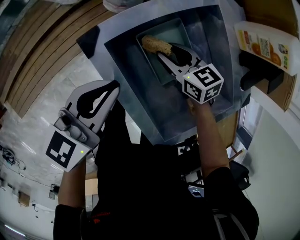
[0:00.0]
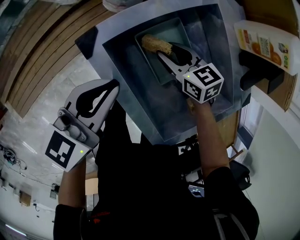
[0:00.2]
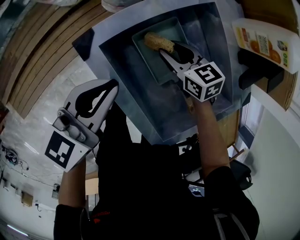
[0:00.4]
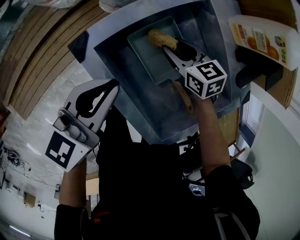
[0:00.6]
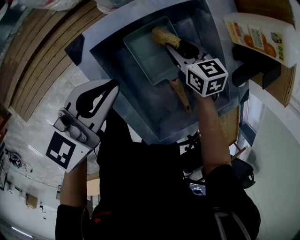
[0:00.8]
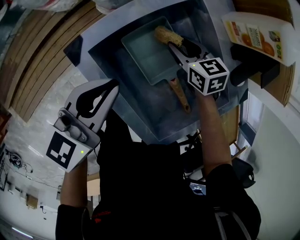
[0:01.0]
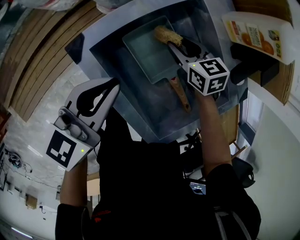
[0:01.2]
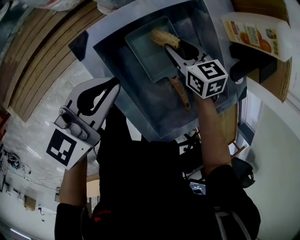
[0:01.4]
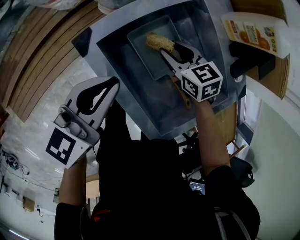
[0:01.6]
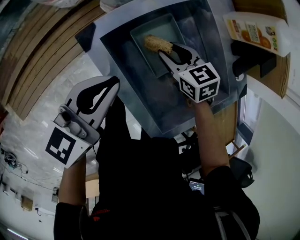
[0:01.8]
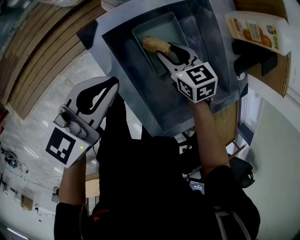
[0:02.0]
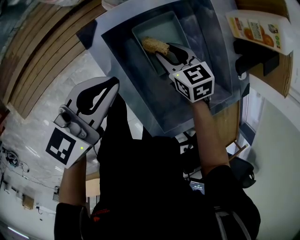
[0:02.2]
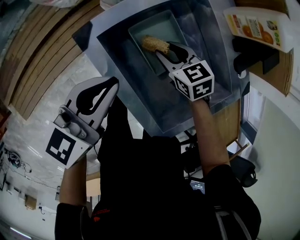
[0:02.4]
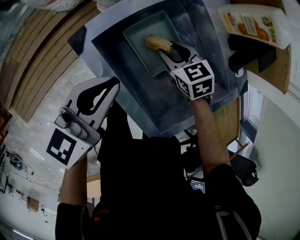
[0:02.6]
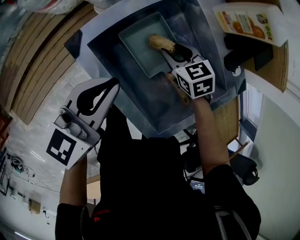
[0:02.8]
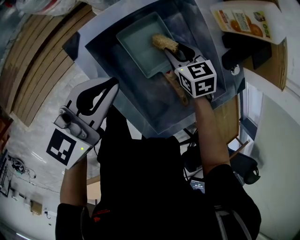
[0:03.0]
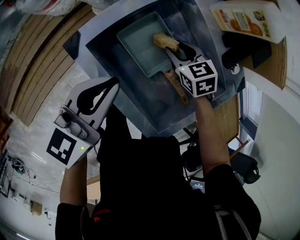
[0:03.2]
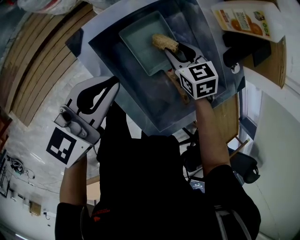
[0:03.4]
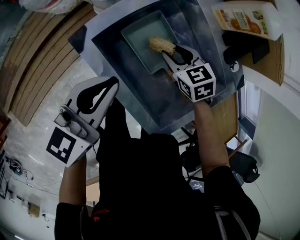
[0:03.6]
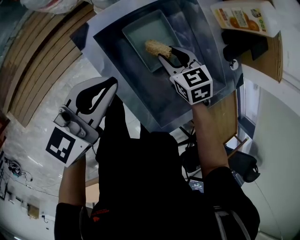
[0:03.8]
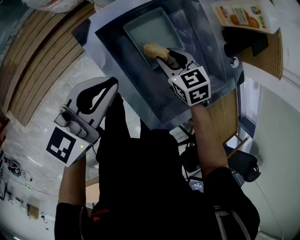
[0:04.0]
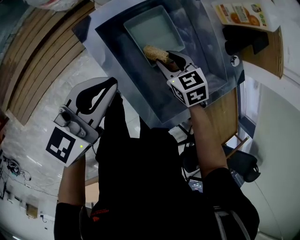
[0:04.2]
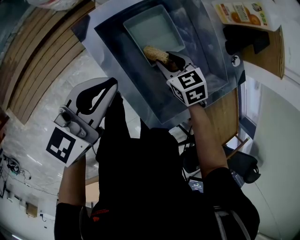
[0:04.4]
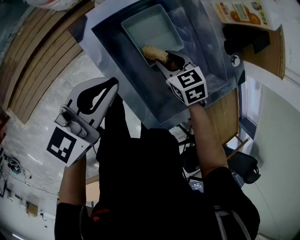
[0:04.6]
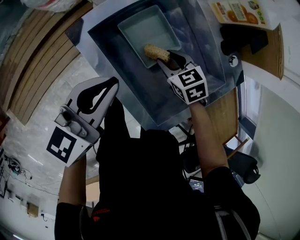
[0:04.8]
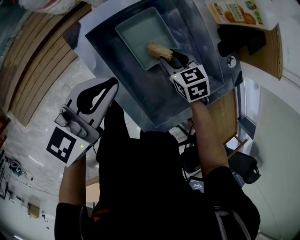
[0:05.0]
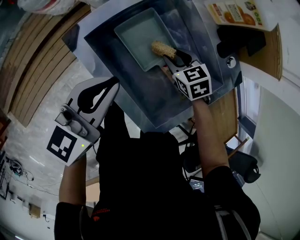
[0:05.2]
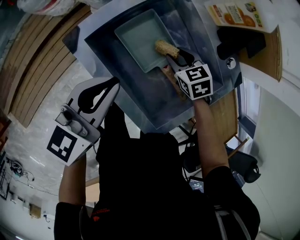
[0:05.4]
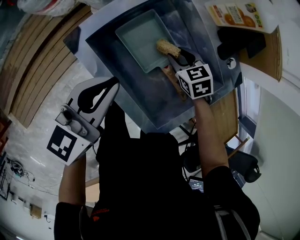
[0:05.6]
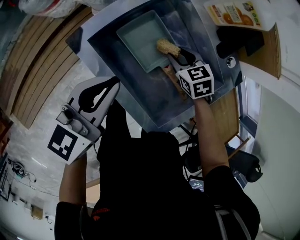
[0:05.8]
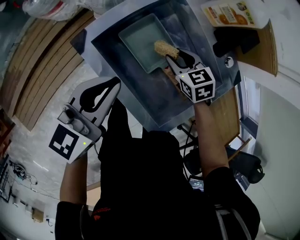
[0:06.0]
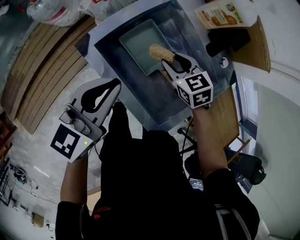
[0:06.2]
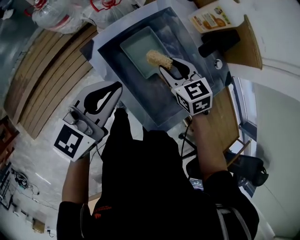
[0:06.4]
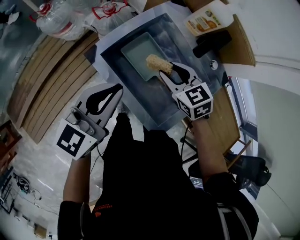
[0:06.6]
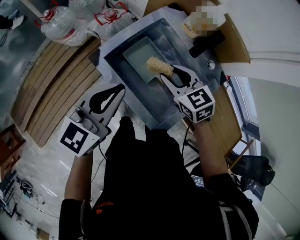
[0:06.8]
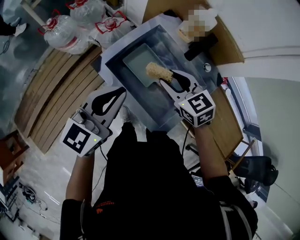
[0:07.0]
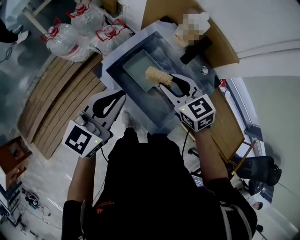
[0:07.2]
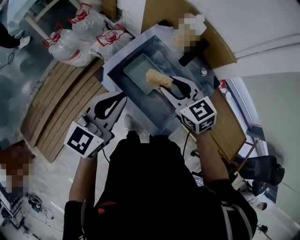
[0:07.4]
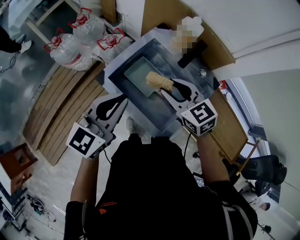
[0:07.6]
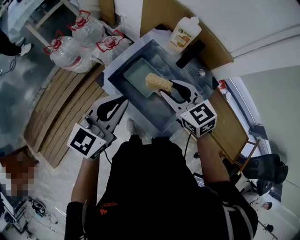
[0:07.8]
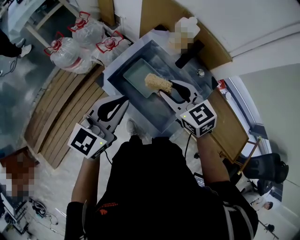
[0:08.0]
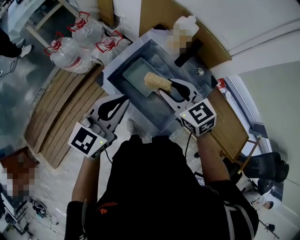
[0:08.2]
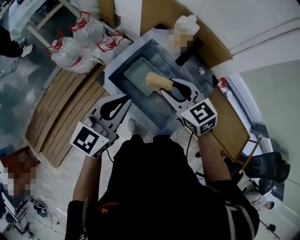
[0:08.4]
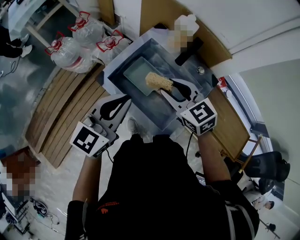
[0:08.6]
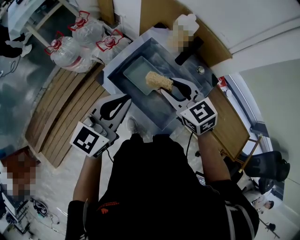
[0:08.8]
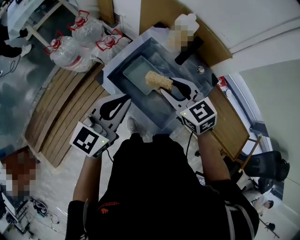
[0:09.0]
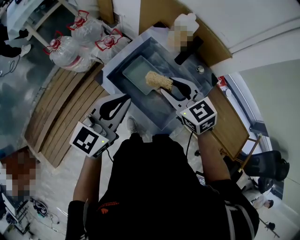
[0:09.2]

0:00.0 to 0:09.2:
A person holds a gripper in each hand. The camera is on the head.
0:01.6 to 0:03.0: The right gripper heads to the right, covering about 5 cm.
0:03.0 to 0:04.6: The left gripper moves backward, about 5 cm. The right gripper travels backward by about 10 cm.
0:04.6 to 0:06.2: The right gripper goes some 5 cm upward, while the left gripper changes place by some 5 cm.
0:06.2 to 0:07.6: The right gripper moves upward, approximately 20 cm. The left gripper is displaced upward by some 15 cm.
0:07.6 to 0:09.2: The grippers stay close to where they were, moving slightly.

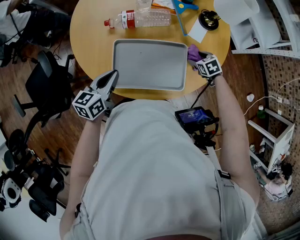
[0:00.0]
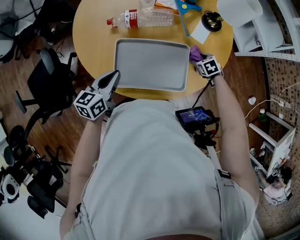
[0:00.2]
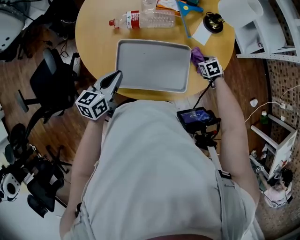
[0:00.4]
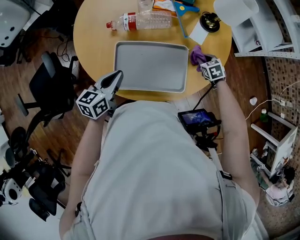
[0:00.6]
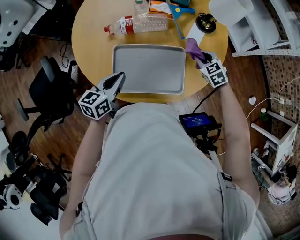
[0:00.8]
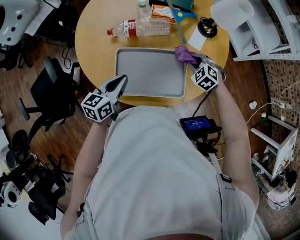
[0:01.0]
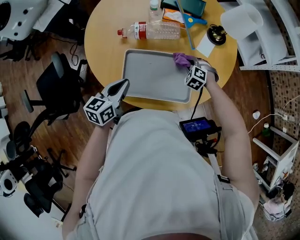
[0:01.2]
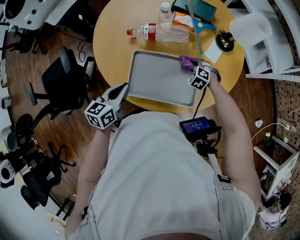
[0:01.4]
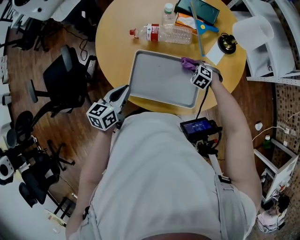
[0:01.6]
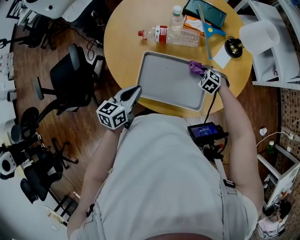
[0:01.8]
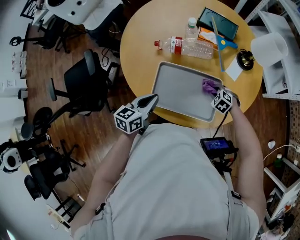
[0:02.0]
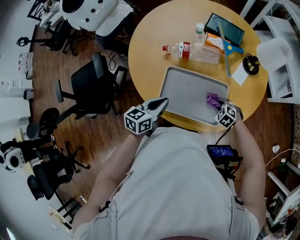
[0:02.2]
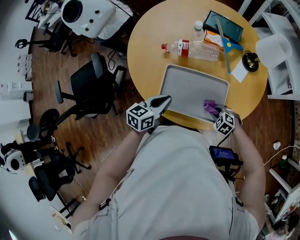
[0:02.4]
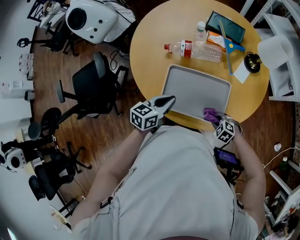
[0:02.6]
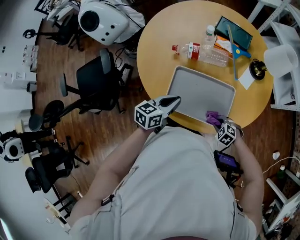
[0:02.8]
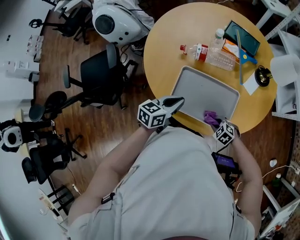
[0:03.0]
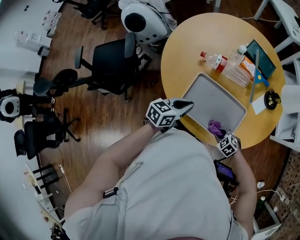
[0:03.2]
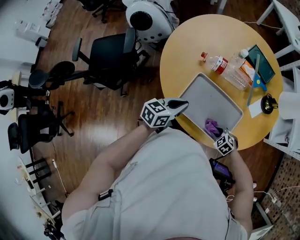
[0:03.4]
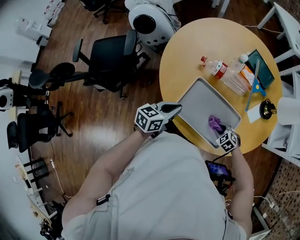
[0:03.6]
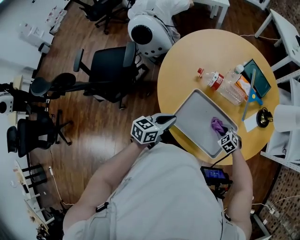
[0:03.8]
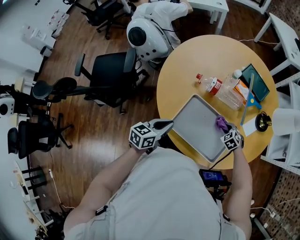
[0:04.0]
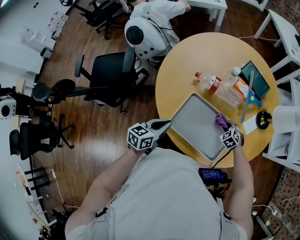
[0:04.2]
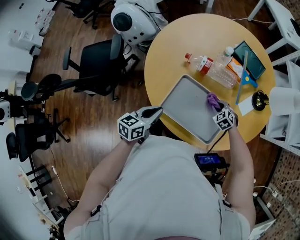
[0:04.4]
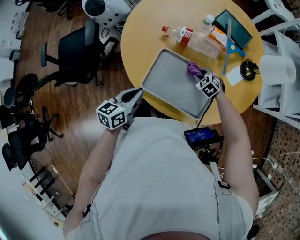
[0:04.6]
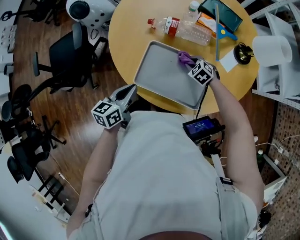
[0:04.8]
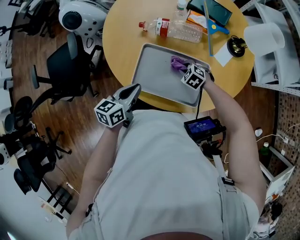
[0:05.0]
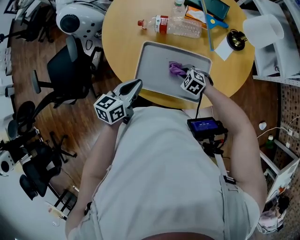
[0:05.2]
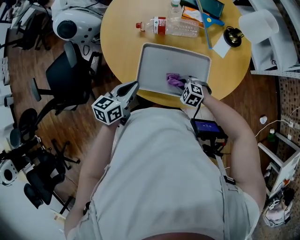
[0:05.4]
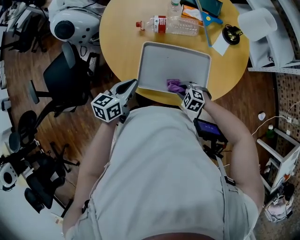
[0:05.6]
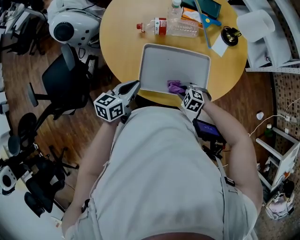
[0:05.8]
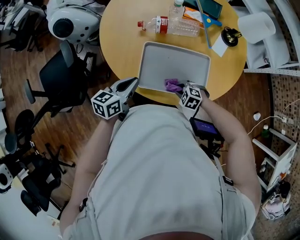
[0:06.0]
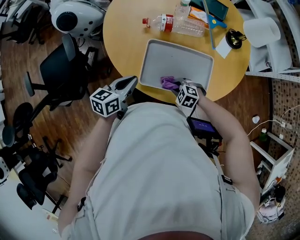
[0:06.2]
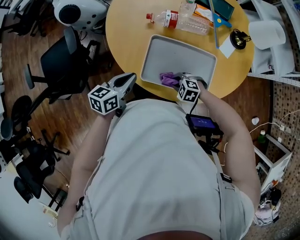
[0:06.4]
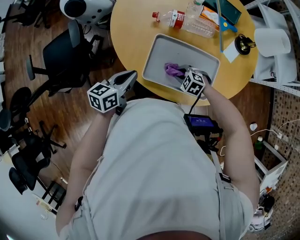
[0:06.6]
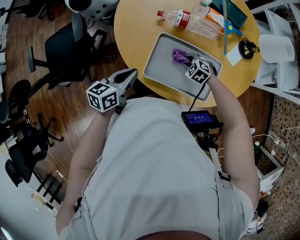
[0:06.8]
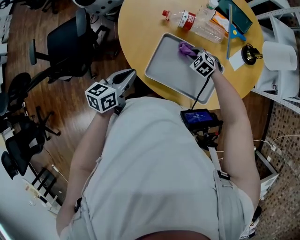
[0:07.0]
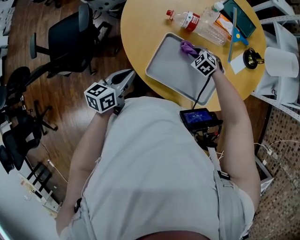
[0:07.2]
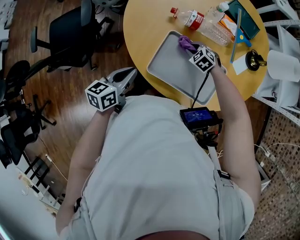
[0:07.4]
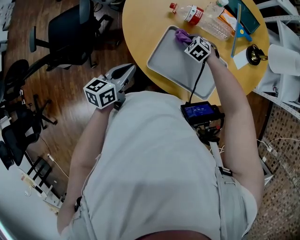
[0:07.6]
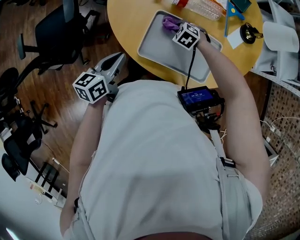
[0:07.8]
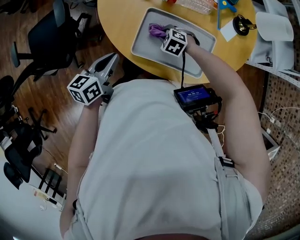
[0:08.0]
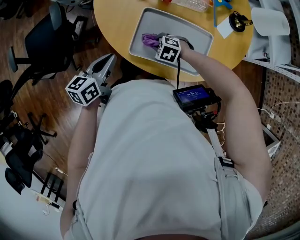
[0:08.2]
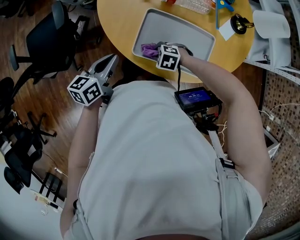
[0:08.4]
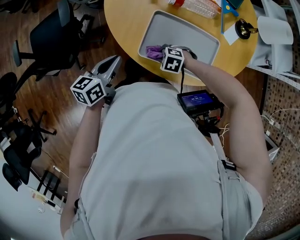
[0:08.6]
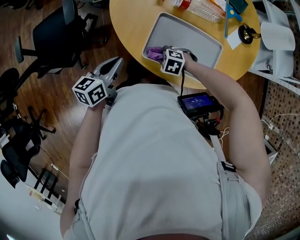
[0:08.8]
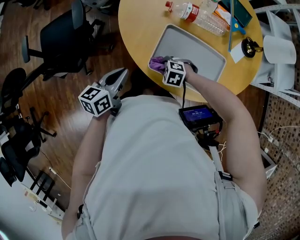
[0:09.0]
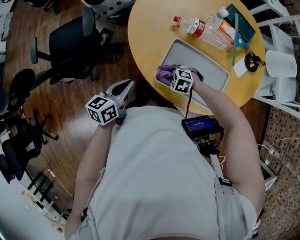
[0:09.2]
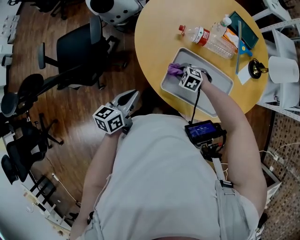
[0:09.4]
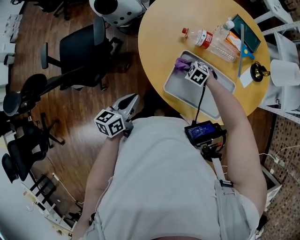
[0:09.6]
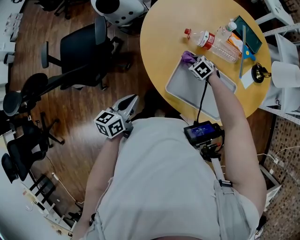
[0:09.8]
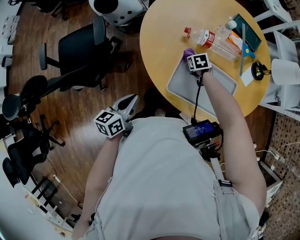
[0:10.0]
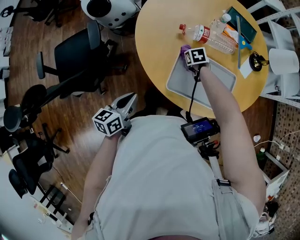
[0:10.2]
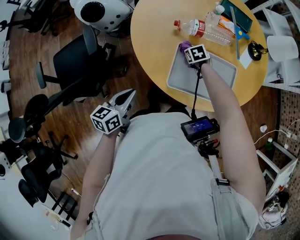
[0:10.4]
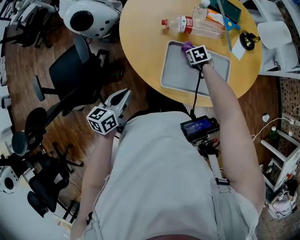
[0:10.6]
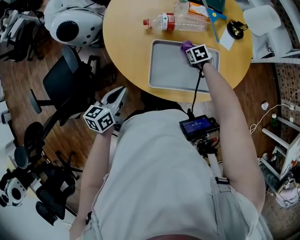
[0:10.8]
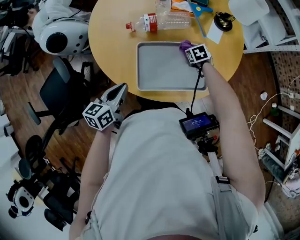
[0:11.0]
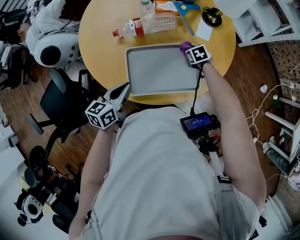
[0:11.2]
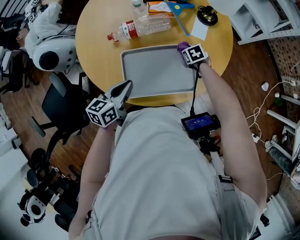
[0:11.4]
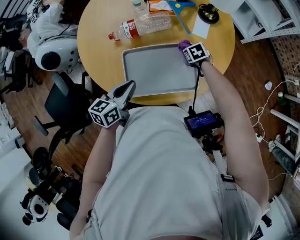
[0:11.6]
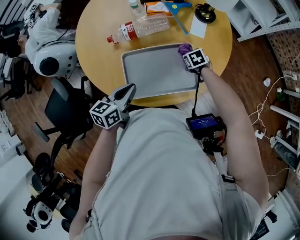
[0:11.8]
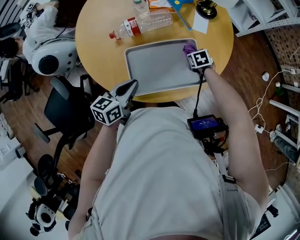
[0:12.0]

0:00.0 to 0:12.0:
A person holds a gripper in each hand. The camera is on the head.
0:00.0 to 0:01.6: The right gripper travels to the left by approximately 10 cm, rotates around the line of its fingers by approximately 40 degrees, counterclockwise from behind, and closes up.
0:01.6 to 0:03.0: The right gripper is displaced backward and to the left by some 20 cm.
0:03.0 to 0:04.4: The left gripper goes approximately 5 cm to the left. The right gripper heads forward, covering some 20 cm.
0:04.4 to 0:06.0: The right gripper goes some 20 cm backward and to the left.
0:06.0 to 0:07.6: The right gripper changes place by some 20 cm, while the left gripper shifts by approximately 10 cm.
0:07.6 to 0:09.0: The right gripper changes place by some 15 cm, and changes its angle by some 20 degrees.
0:09.0 to 0:10.4: The right gripper moves approximately 20 cm, and twists about 60 degrees clockwise, seen from behind. Meanwhile the left gripper moves some 10 cm.
0:10.4 to 0:12.0: The left gripper moves about 25 cm, and rotates some 30 degrees. Meanwhile the right gripper ends up about 30 cm from where it was, and turns by some 30 degrees.

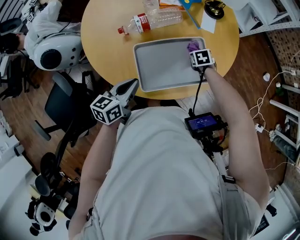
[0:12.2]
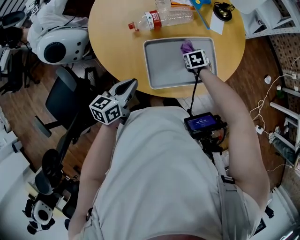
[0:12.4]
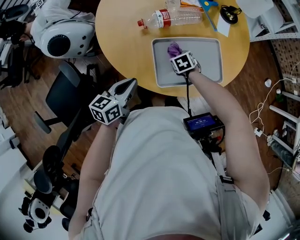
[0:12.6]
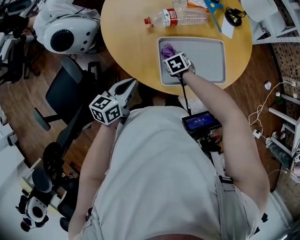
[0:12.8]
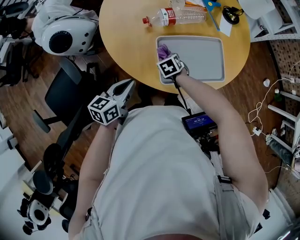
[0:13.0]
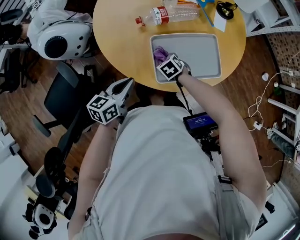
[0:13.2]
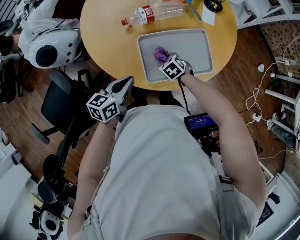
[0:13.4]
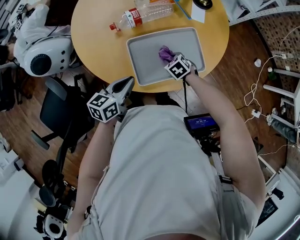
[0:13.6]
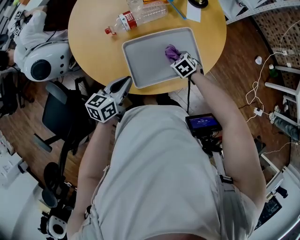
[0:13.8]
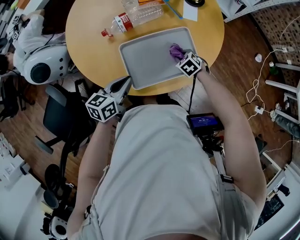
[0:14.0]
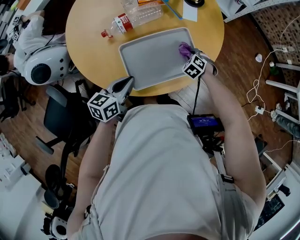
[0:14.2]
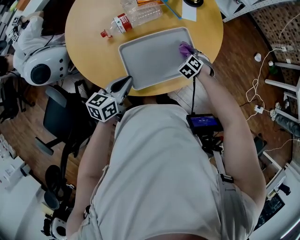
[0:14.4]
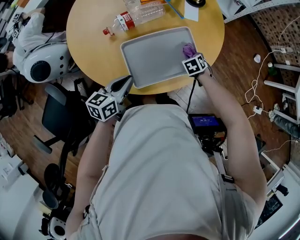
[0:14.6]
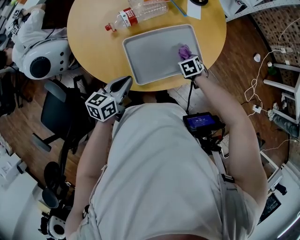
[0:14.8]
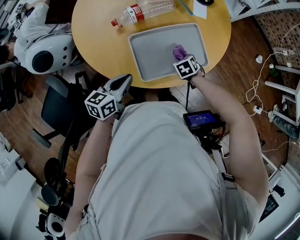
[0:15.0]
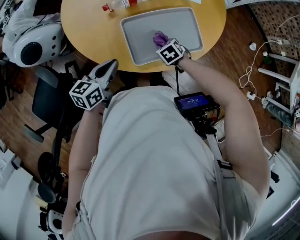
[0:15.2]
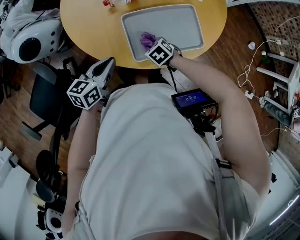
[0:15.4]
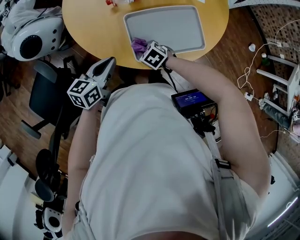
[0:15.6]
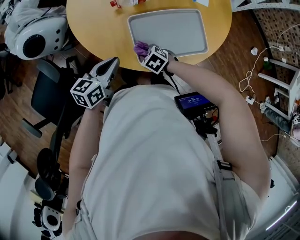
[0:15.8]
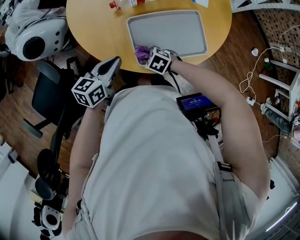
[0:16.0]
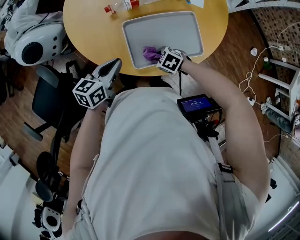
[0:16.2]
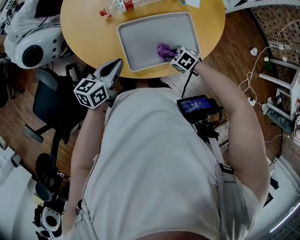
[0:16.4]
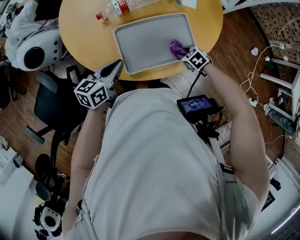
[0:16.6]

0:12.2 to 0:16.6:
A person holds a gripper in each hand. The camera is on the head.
0:12.2 to 0:13.6: The left gripper moves some 10 cm to the left and comes back, while the right gripper moves to the left and backward, roughly 15 cm, and turns by about 30 degrees.
0:13.6 to 0:15.2: The left gripper moves approximately 5 cm.
0:15.2 to 0:16.6: The left gripper moves about 5 cm. The right gripper changes place by approximately 15 cm.
